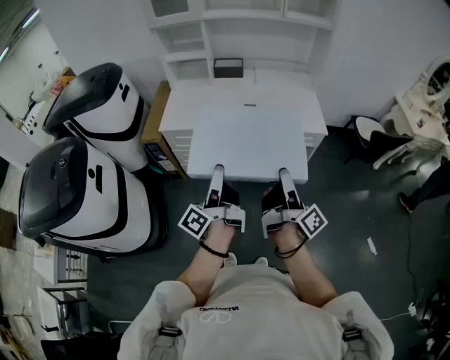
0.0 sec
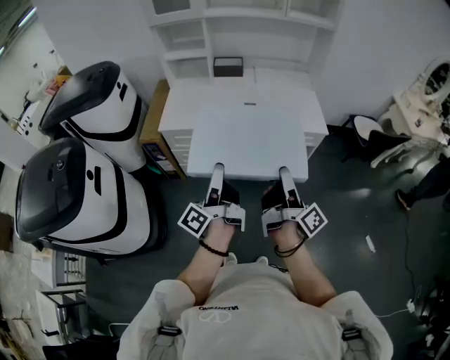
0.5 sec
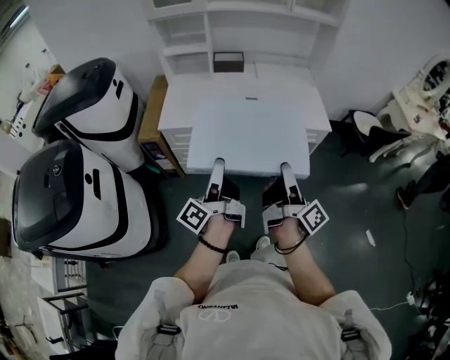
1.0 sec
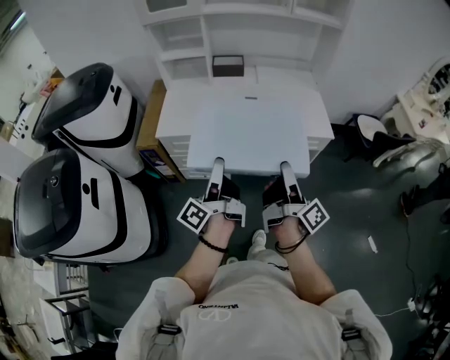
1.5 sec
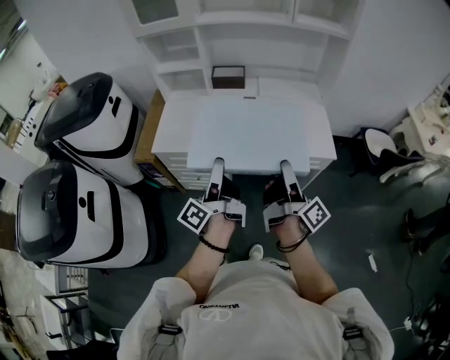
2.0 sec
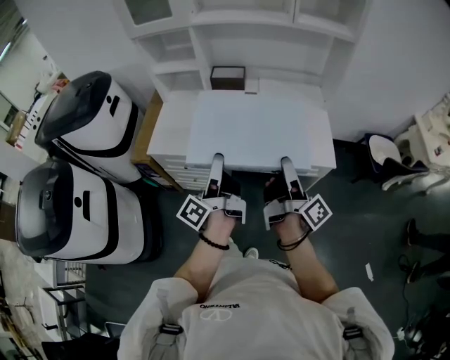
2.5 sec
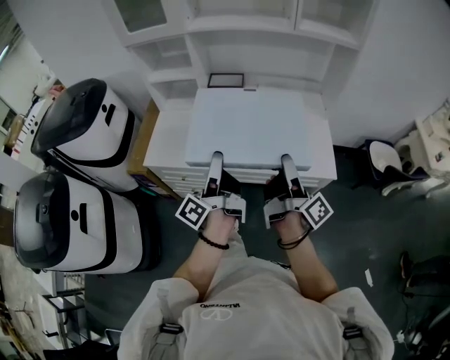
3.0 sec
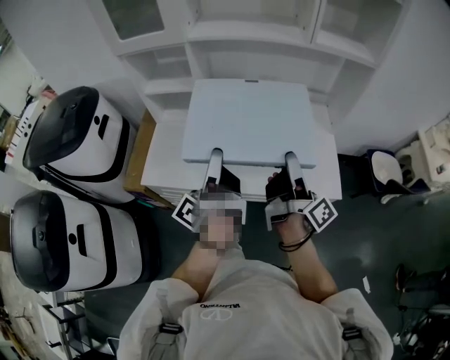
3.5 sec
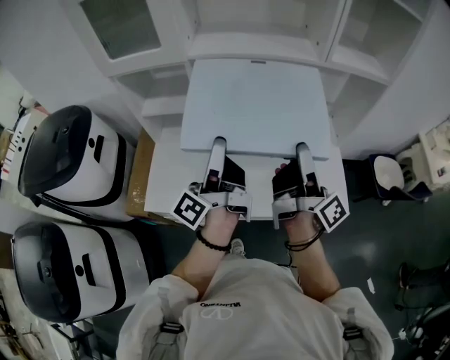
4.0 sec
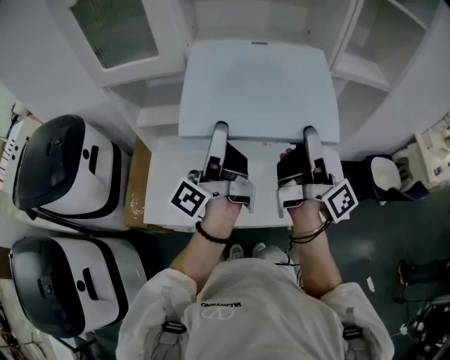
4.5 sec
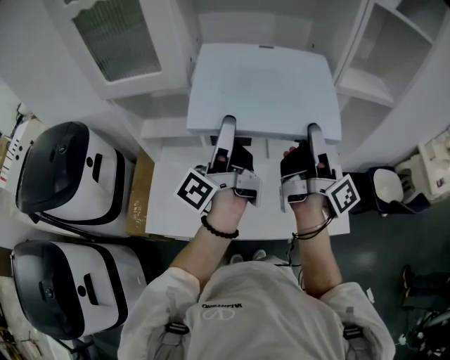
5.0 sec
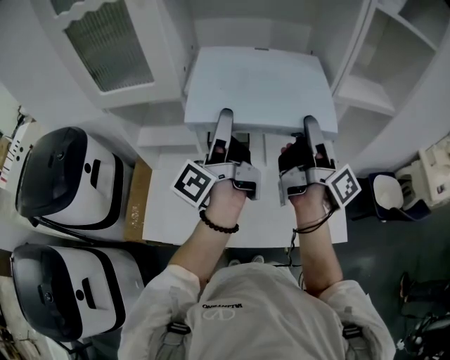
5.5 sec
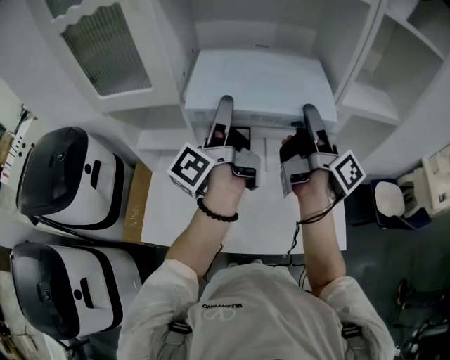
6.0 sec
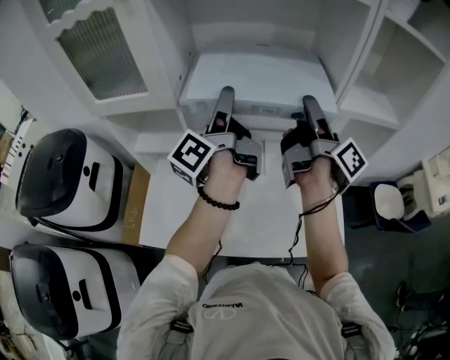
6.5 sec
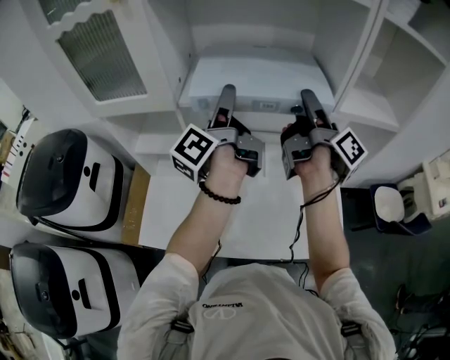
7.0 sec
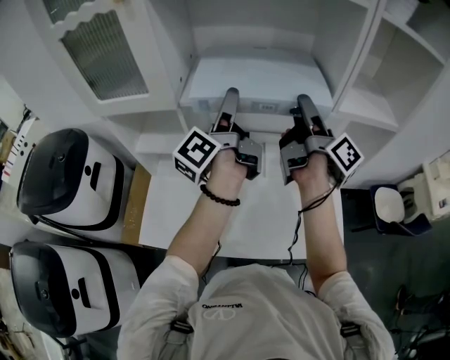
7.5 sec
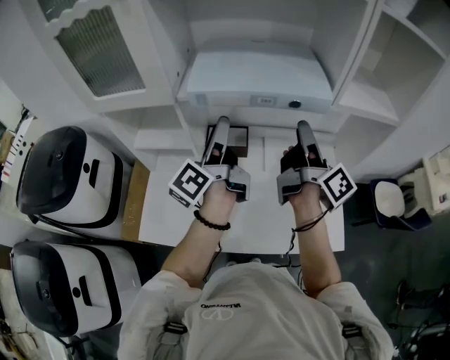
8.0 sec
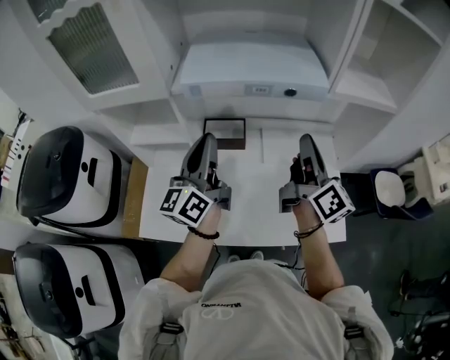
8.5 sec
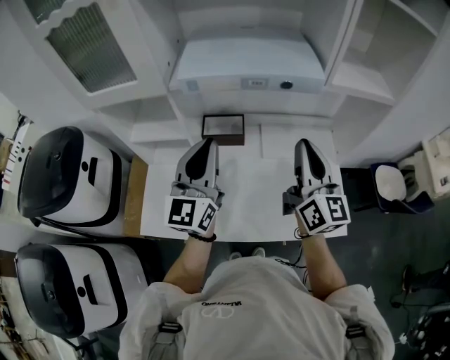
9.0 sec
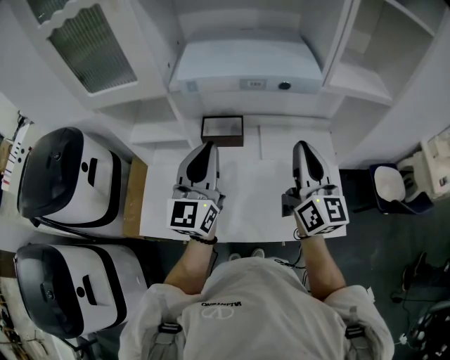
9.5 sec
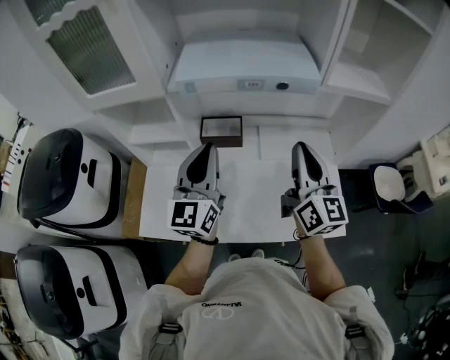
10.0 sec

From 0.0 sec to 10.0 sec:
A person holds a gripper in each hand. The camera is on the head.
From 0.0 sec to 2.0 sec: Both grippers travel together forward, about 20 cm.
From 2.0 sec to 4.0 sec: Both grippers travel together forward, about 30 cm.
From 4.0 sec to 6.0 sec: The right gripper shifts some 20 cm forward, while the left gripper moves forward and upward, roughly 20 cm.
From 6.0 sec to 8.0 sec: The left gripper is displaced downward by about 5 cm.
From 8.0 sec to 10.0 sec: The grippers both shift backward by about 10 cm. The left gripper twists some 60 degrees clockwise, seen from behind, and closes up, while the right gripper rotates around the line of its fingers by roughly 50 degrees, counterclockwise from behind, and closes its fingers.

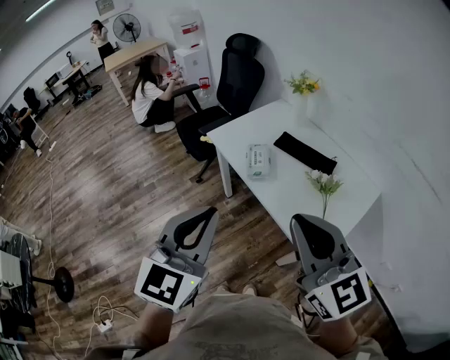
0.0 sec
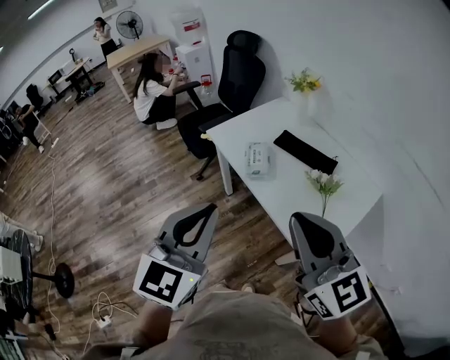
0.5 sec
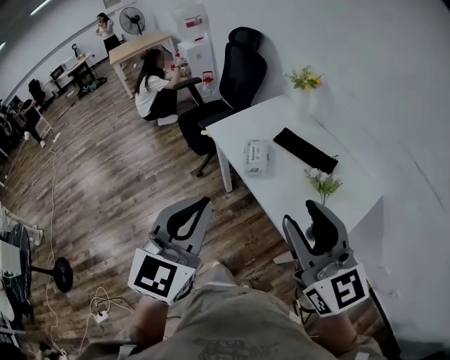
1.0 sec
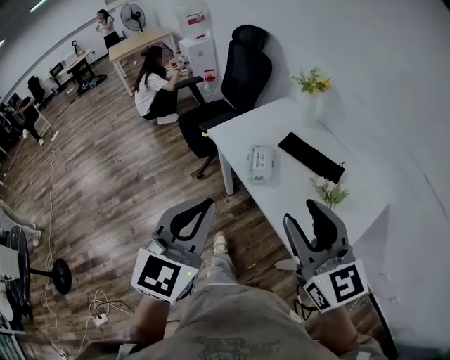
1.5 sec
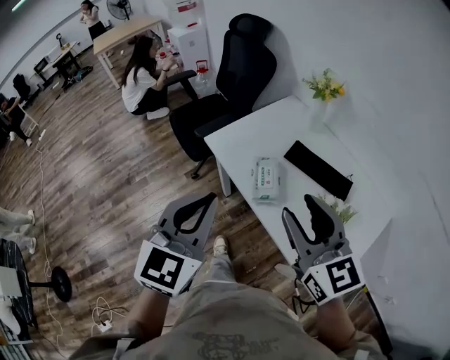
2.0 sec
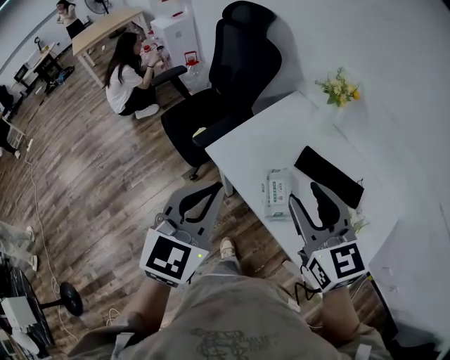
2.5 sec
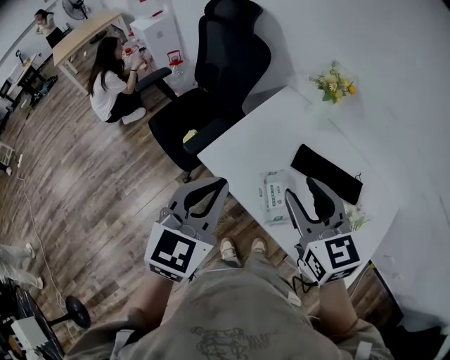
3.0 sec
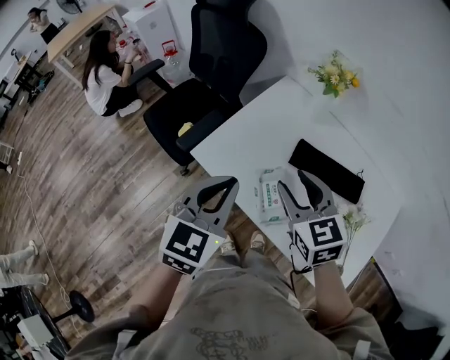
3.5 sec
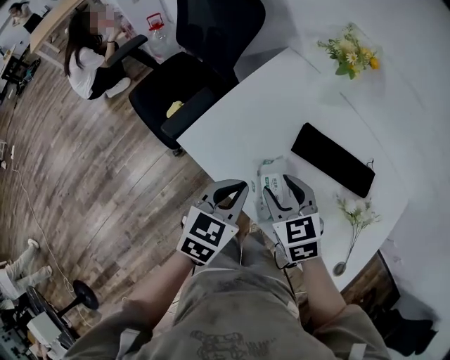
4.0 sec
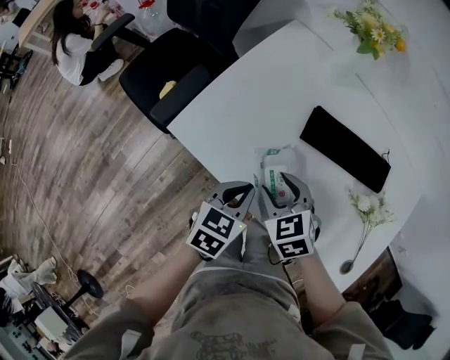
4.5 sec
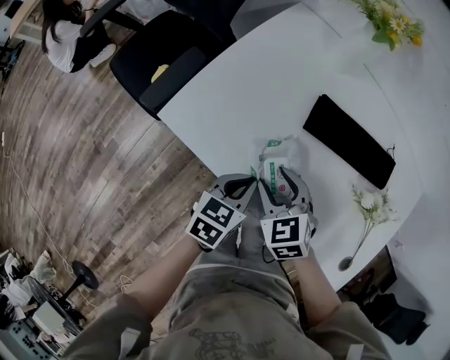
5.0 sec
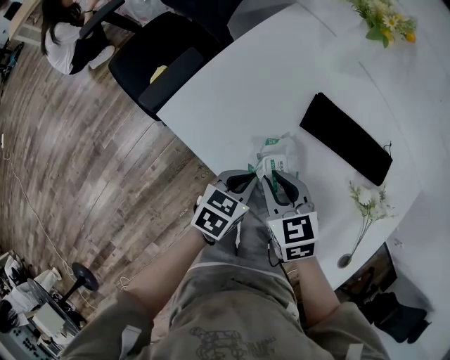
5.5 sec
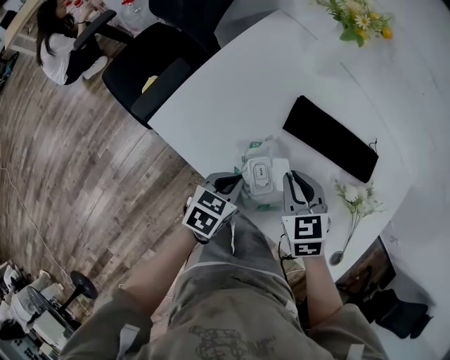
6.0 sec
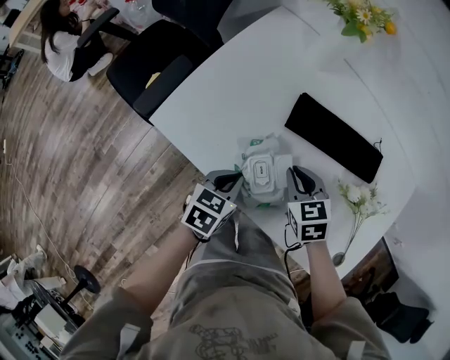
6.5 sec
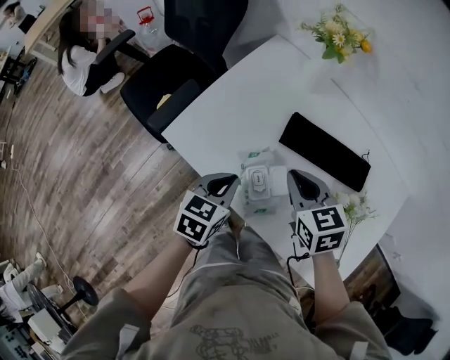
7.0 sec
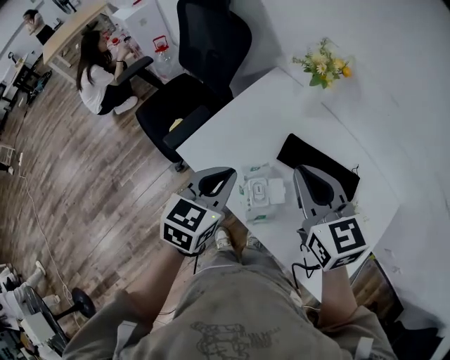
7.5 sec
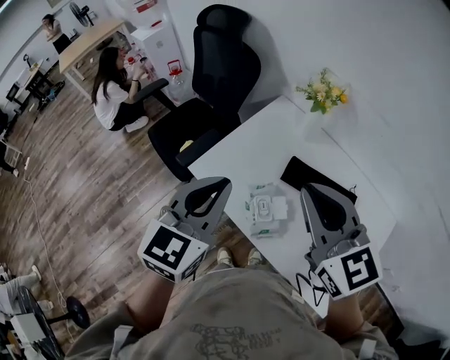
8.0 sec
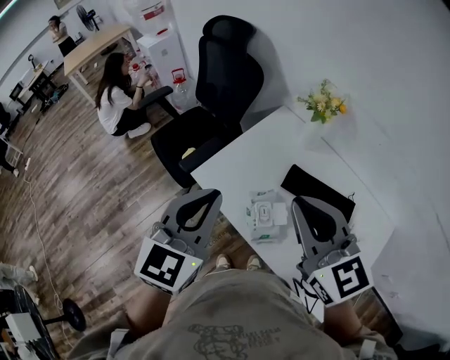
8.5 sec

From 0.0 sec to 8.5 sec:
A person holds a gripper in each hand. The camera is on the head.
From 0.0 sec to 2.0 sec: Both grippers move forward, some 20 cm. The right gripper opens up.
From 2.0 sec to 4.0 sec: Both grippers travel together downward and forward, about 35 cm. The left gripper turns by approximately 30 degrees, while the right gripper tips its fingers downward by roughly 30 degrees.
From 4.0 sec to 6.5 sec: The left gripper goes about 15 cm downward, while the right gripper goes up and down, some 10 cm each way, reversing 2 times, and closes.
From 6.5 sec to 8.5 sec: The grippers both shift upward by some 40 cm. The right gripper tips its fingers upward by some 40 degrees. The left gripper points its fingers some 30 degrees further upward.

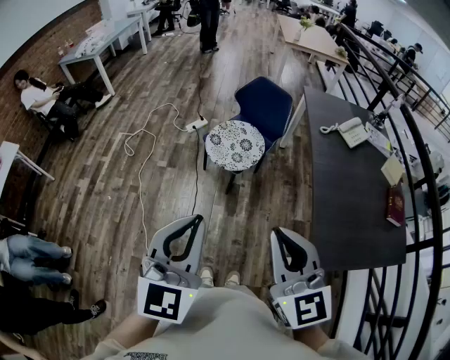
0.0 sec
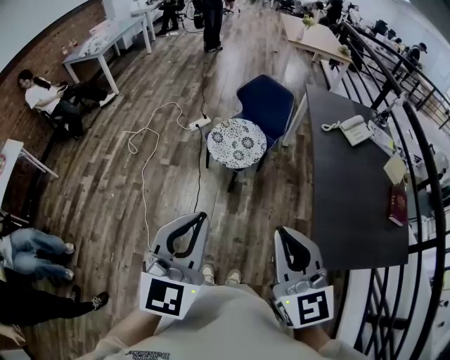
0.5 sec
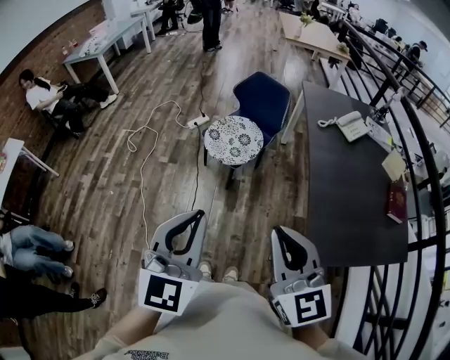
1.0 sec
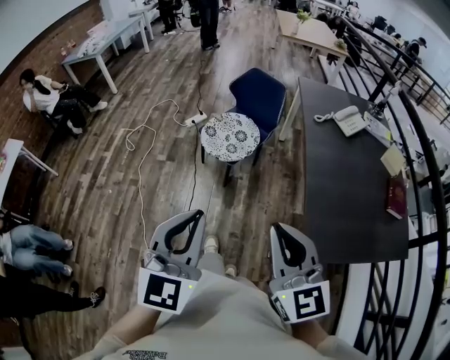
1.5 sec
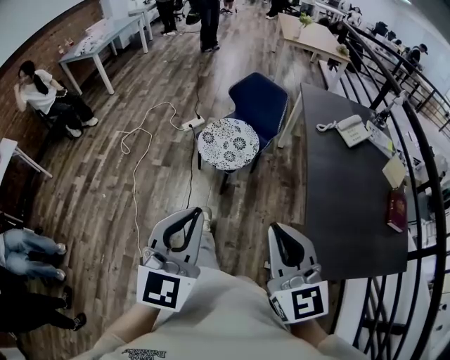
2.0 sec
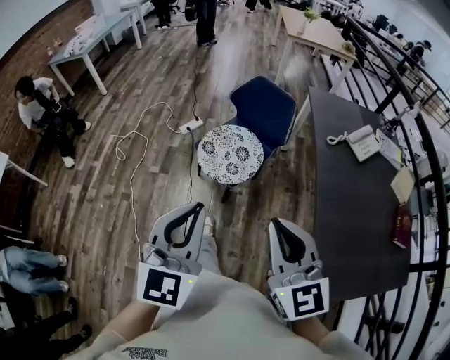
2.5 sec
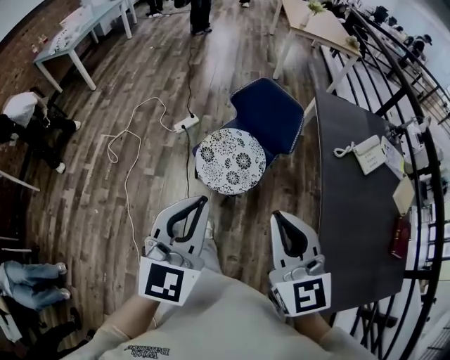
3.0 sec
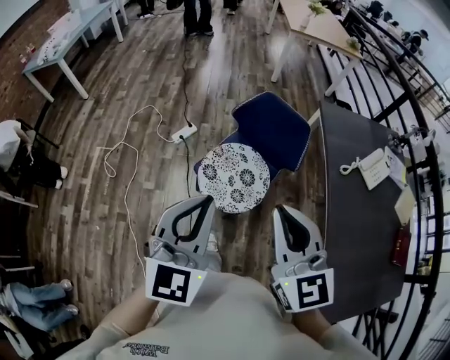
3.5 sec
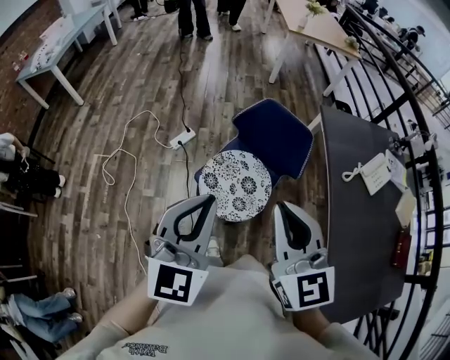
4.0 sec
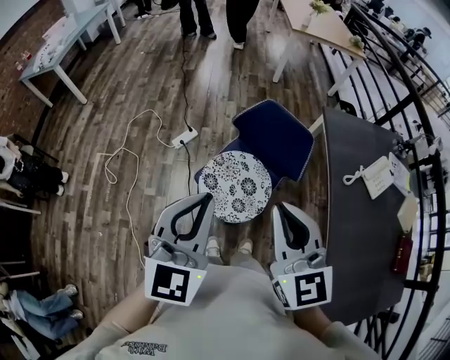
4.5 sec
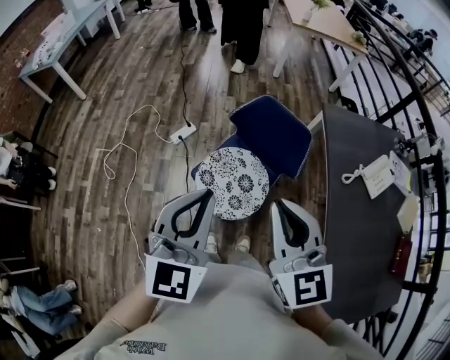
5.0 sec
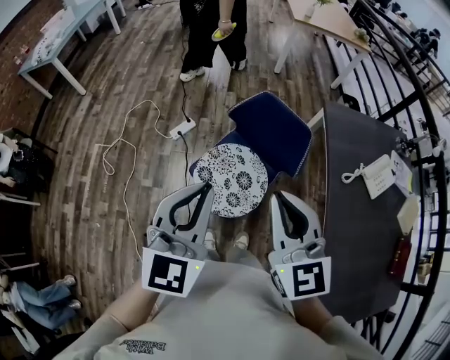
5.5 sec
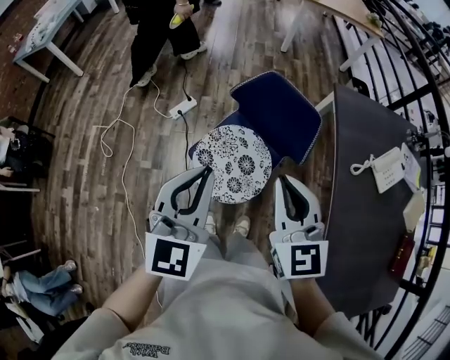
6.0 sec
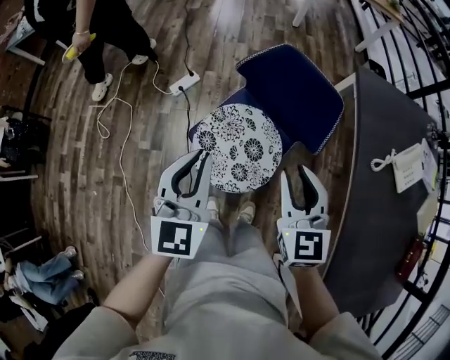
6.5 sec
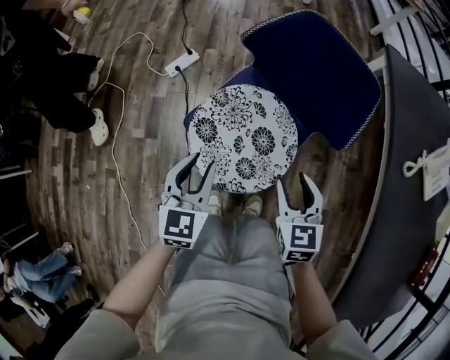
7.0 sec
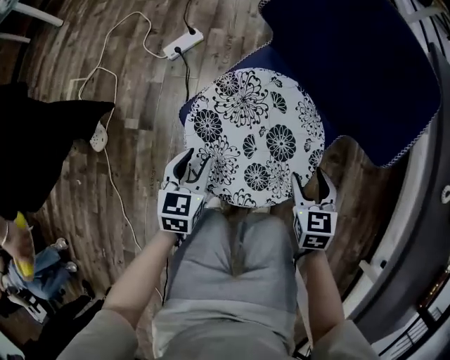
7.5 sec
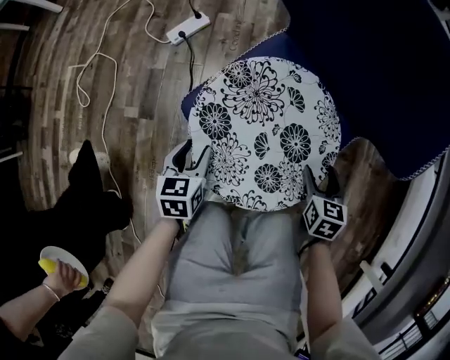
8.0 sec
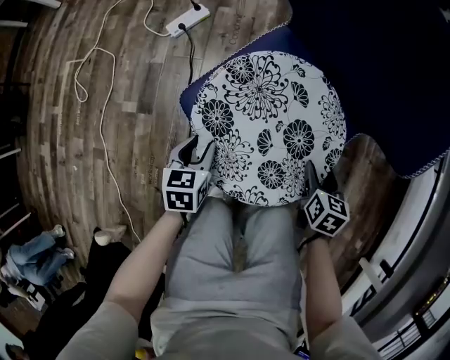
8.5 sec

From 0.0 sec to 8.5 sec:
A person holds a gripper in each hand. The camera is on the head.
From 0.0 sec to 2.0 sec: Both grippers travel together to the right, approximately 10 cm.
From 2.0 sec to 4.0 sec: Both grippers are carried forward, some 50 cm.
From 4.0 sec to 6.5 sec: The left gripper is displaced downward and forward by about 25 cm. The right gripper moves downward, forward and to the right, some 30 cm.
From 6.5 sec to 8.5 sec: The two grippers go about 50 cm downward. The left gripper angles its fingers downward, by roughly 40 degrees, and opens up, while the right gripper tips its fingers downward by about 30 degrees, and opens.
